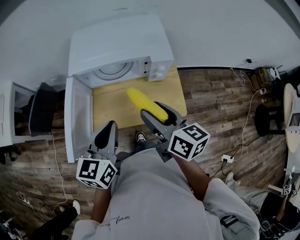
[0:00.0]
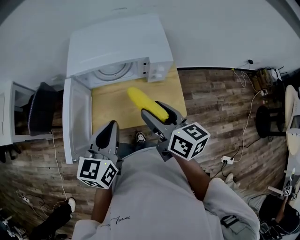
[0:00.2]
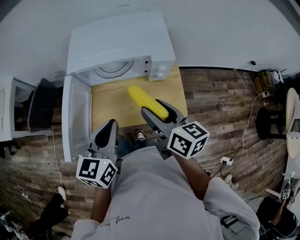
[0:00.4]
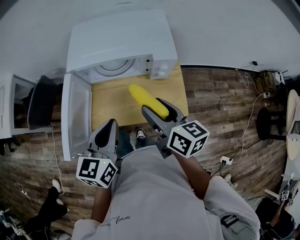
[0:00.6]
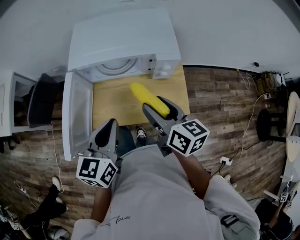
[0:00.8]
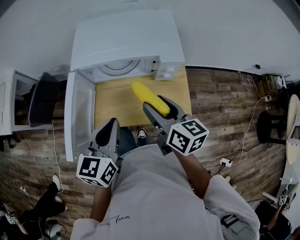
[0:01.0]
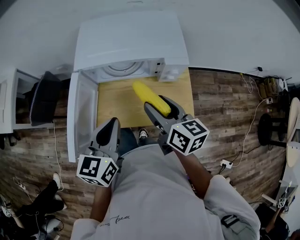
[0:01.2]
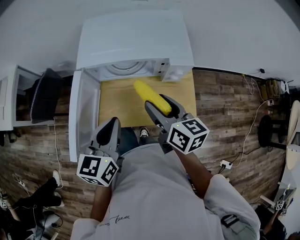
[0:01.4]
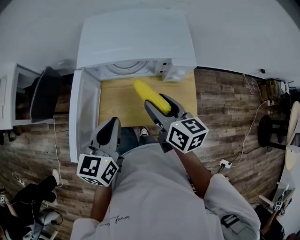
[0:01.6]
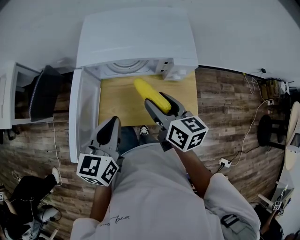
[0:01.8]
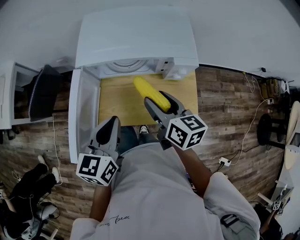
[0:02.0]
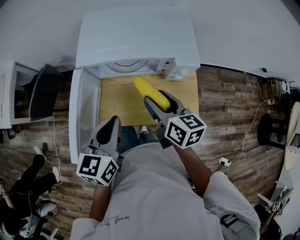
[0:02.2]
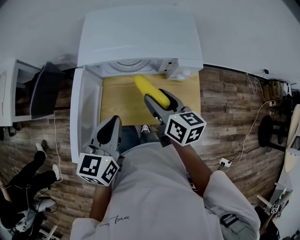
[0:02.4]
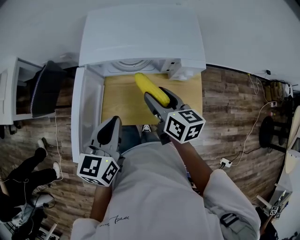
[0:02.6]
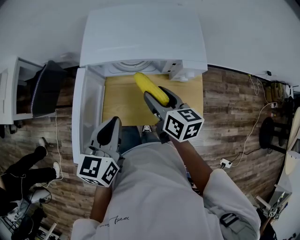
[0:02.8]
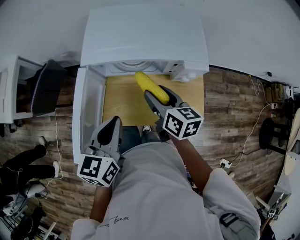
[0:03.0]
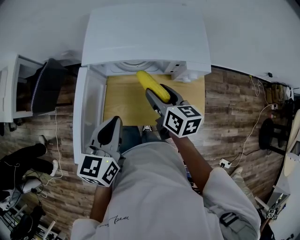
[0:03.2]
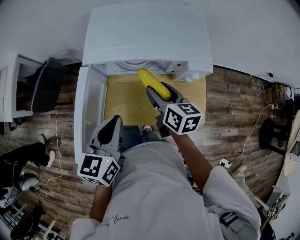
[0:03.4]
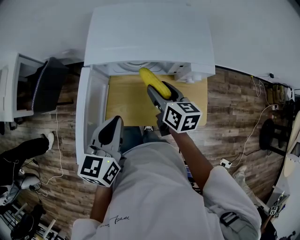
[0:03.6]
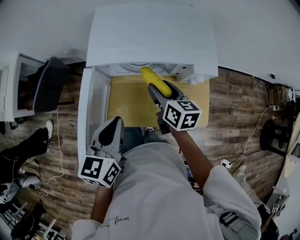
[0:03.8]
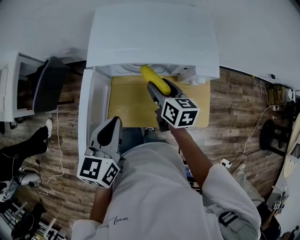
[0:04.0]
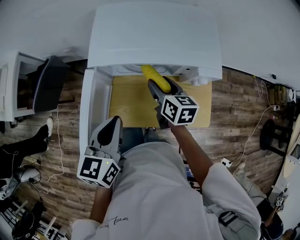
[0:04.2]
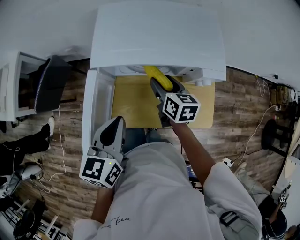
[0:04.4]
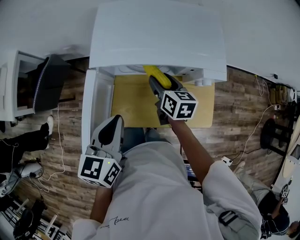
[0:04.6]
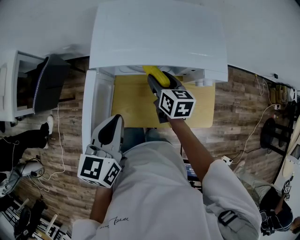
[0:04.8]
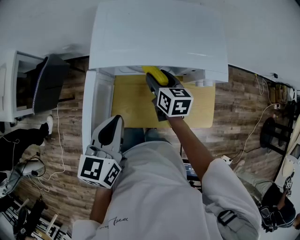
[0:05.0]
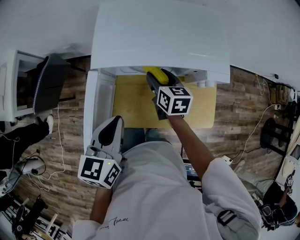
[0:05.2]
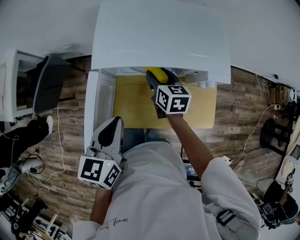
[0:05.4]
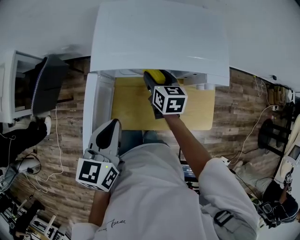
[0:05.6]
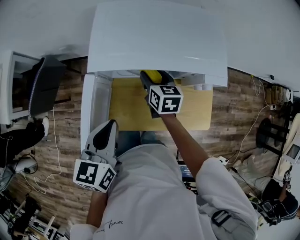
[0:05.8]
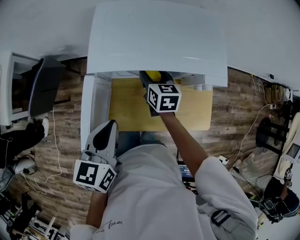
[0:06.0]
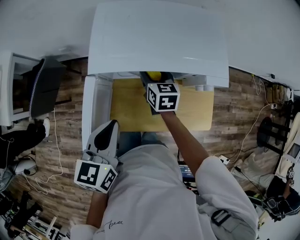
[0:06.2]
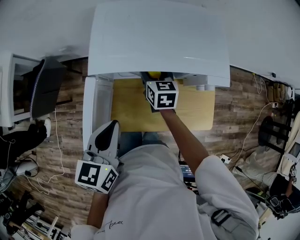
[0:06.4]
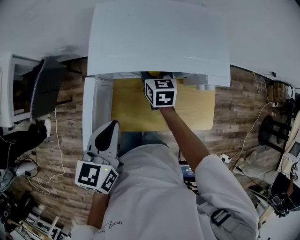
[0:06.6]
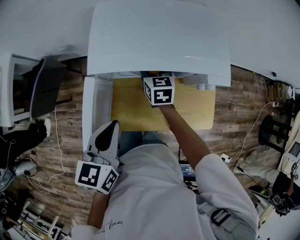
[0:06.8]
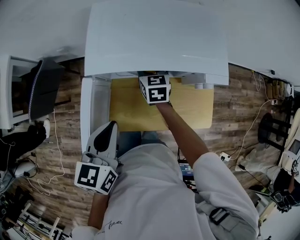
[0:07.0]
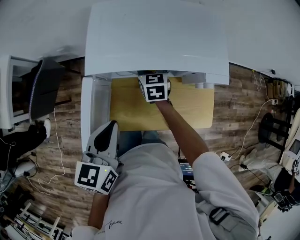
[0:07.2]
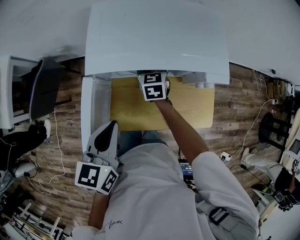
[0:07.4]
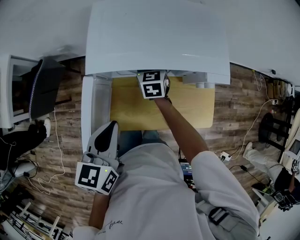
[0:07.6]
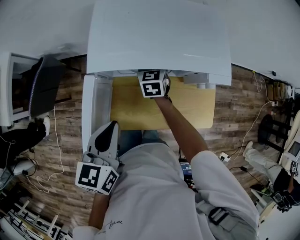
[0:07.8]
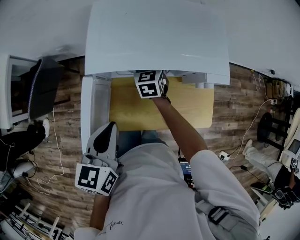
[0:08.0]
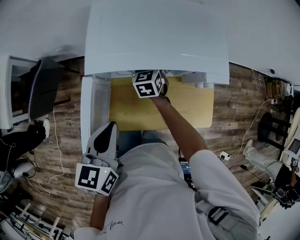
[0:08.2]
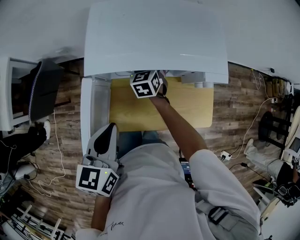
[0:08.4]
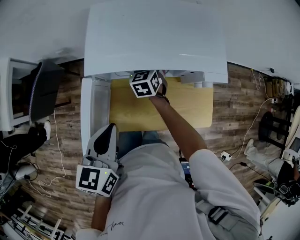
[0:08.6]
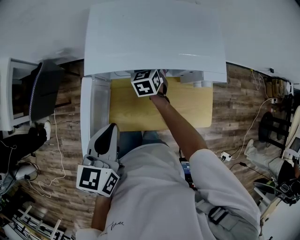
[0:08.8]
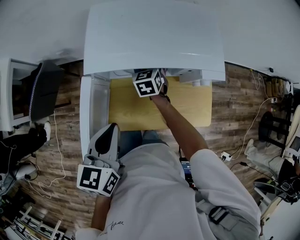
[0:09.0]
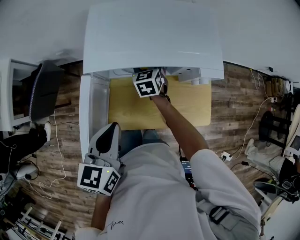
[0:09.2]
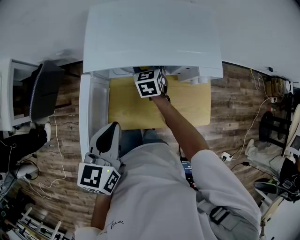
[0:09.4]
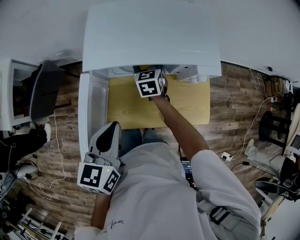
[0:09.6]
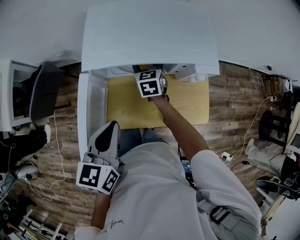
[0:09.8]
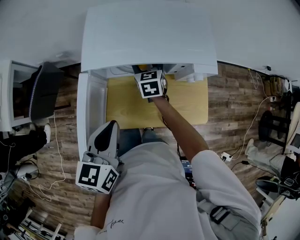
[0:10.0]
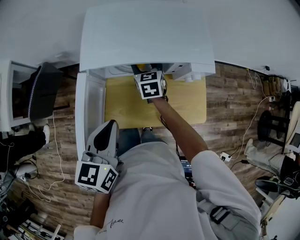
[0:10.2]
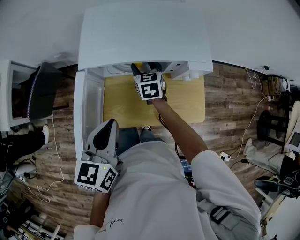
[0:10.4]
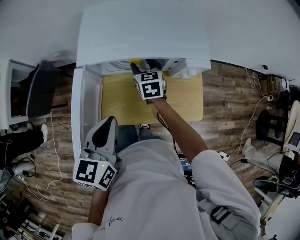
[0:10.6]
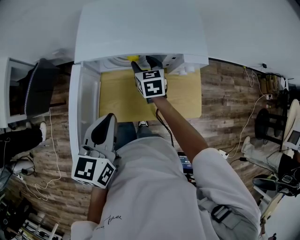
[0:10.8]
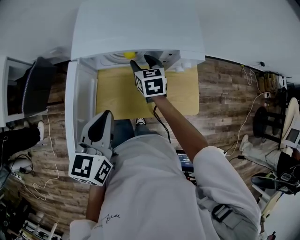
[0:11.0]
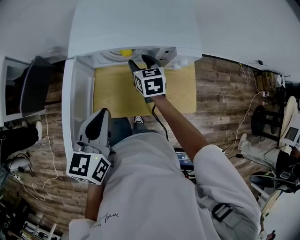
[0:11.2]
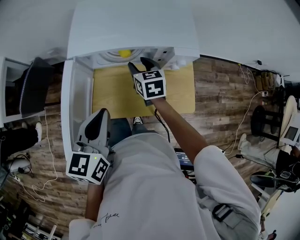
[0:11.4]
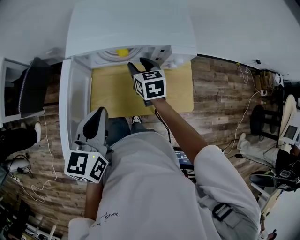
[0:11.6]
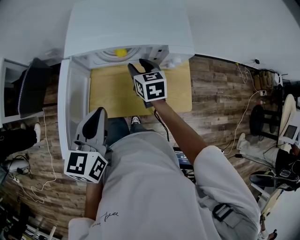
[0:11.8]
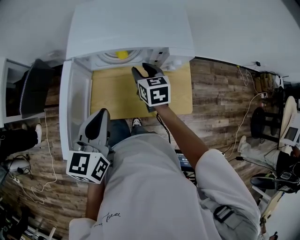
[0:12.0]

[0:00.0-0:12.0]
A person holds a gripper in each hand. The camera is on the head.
0:00.0 to 0:01.6: The left gripper shifts by roughly 5 cm; the right gripper travels forward and downward by roughly 10 cm.
0:01.6 to 0:03.0: The right gripper travels forward by about 5 cm.
0:03.0 to 0:04.4: The right gripper is displaced forward and downward by some 10 cm.
0:04.4 to 0:06.0: The right gripper moves forward, about 5 cm.
0:06.0 to 0:07.6: The right gripper is displaced forward by roughly 5 cm.
0:07.6 to 0:09.0: The grippers make only small movements.
0:09.0 to 0:10.4: The right gripper ends up roughly 5 cm from where it was.
0:10.4 to 0:12.0: The right gripper moves backward and to the right, some 10 cm.

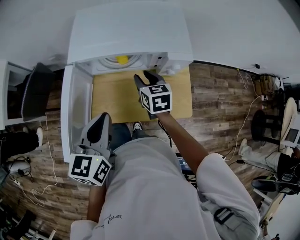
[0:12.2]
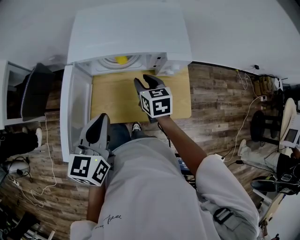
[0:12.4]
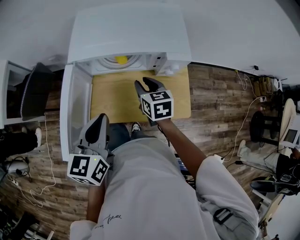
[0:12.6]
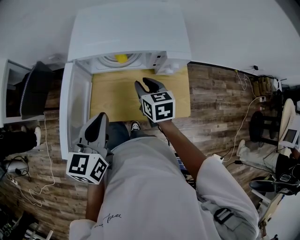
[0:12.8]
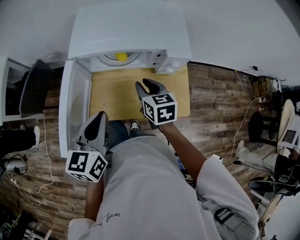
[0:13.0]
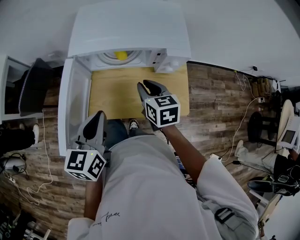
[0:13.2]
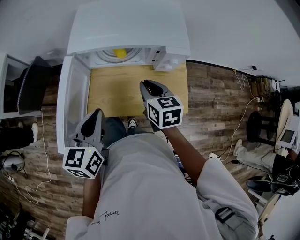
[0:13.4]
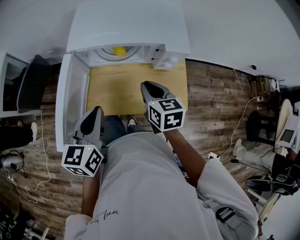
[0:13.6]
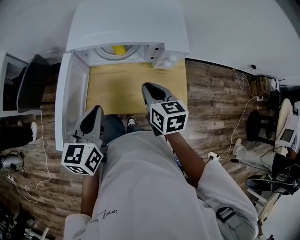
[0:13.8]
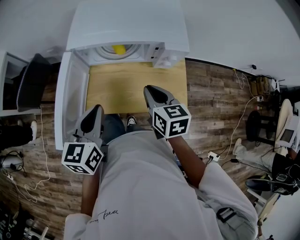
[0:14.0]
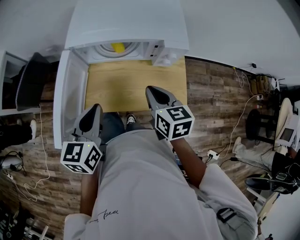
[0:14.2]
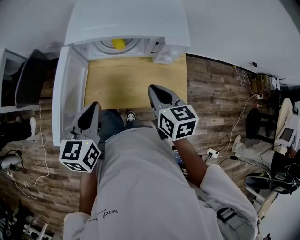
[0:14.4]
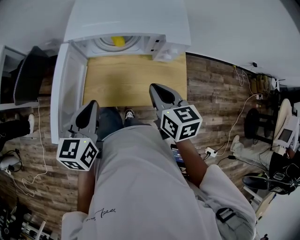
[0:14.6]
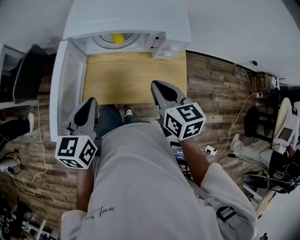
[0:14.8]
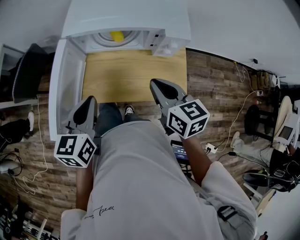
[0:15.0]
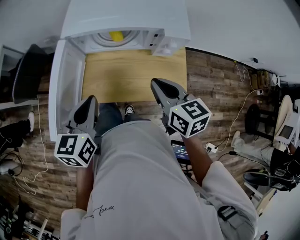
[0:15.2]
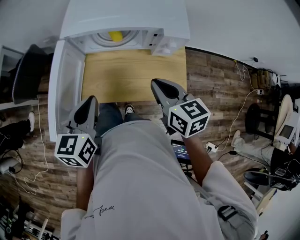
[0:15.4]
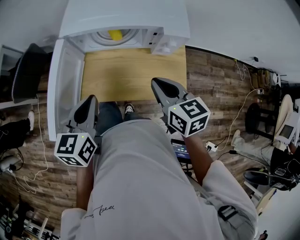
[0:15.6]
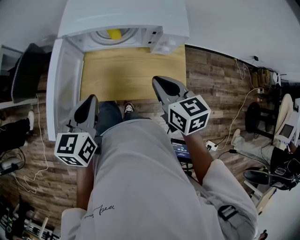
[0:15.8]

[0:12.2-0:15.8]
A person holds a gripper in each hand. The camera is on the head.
0:12.2 to 0:14.0: The right gripper travels backward and upward by roughly 10 cm, and closes up.
0:14.0 to 0:15.8: There are only small adjustments of the grippers.

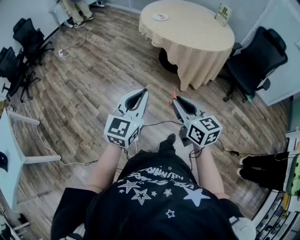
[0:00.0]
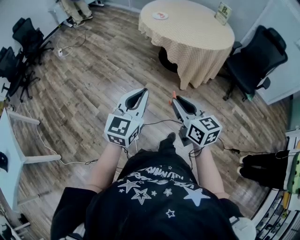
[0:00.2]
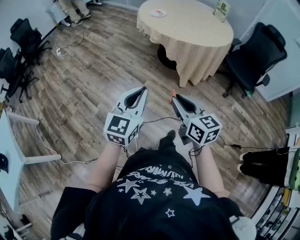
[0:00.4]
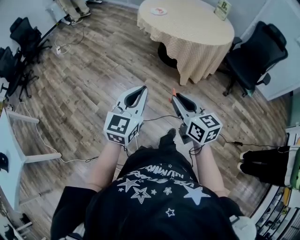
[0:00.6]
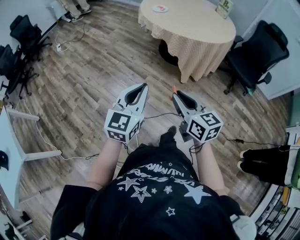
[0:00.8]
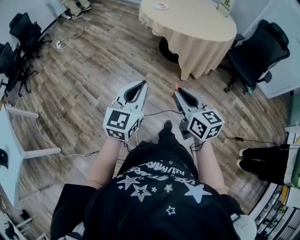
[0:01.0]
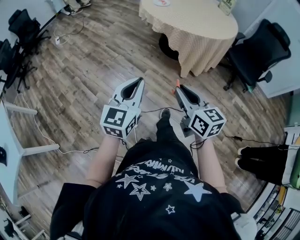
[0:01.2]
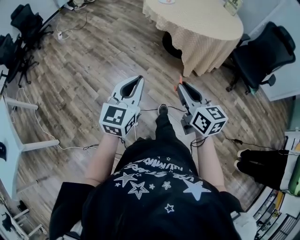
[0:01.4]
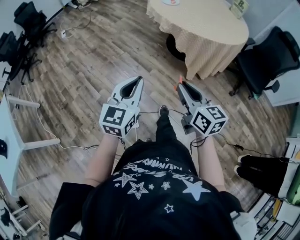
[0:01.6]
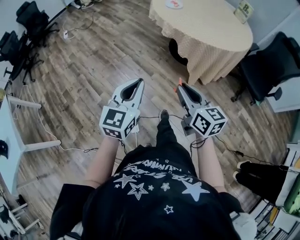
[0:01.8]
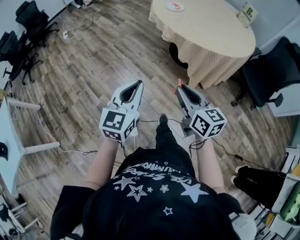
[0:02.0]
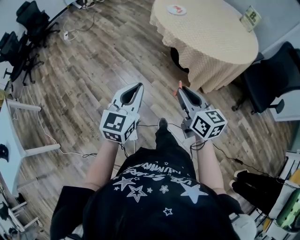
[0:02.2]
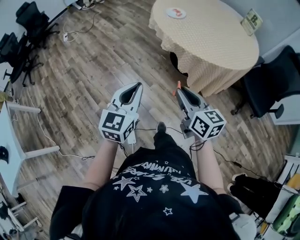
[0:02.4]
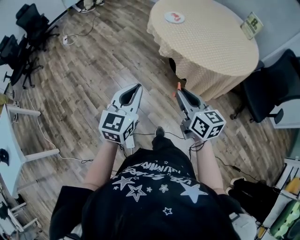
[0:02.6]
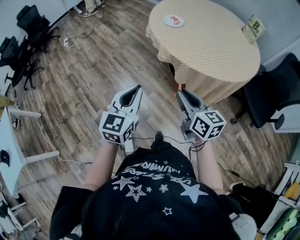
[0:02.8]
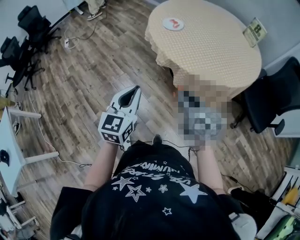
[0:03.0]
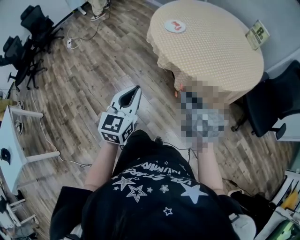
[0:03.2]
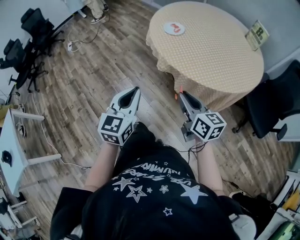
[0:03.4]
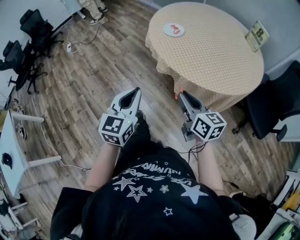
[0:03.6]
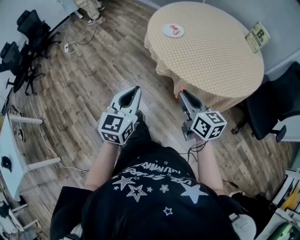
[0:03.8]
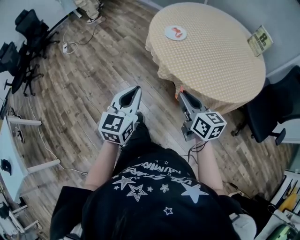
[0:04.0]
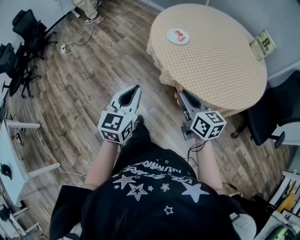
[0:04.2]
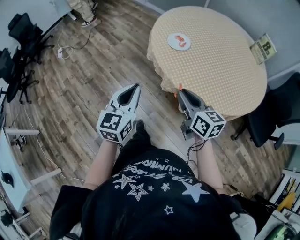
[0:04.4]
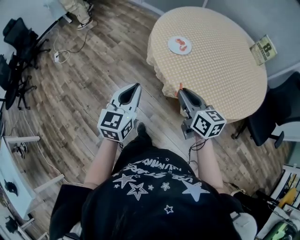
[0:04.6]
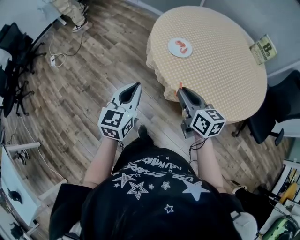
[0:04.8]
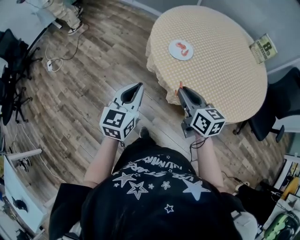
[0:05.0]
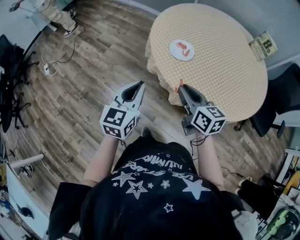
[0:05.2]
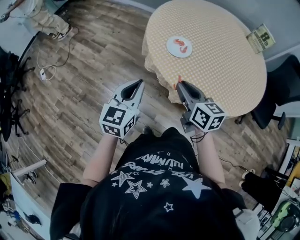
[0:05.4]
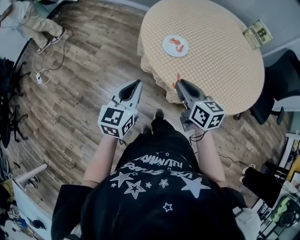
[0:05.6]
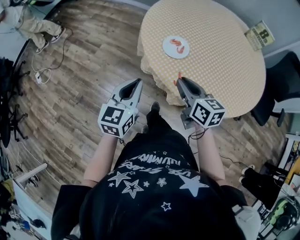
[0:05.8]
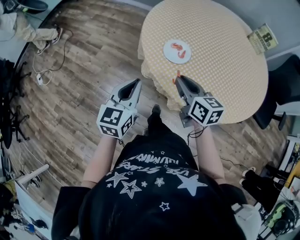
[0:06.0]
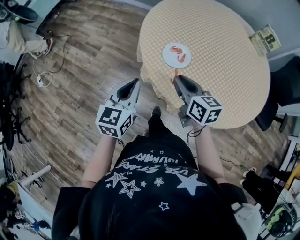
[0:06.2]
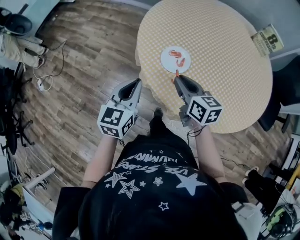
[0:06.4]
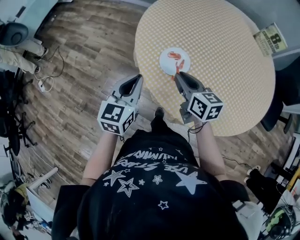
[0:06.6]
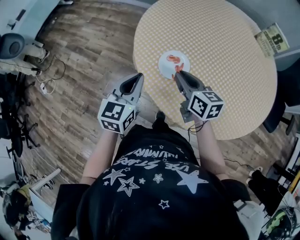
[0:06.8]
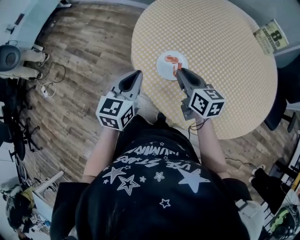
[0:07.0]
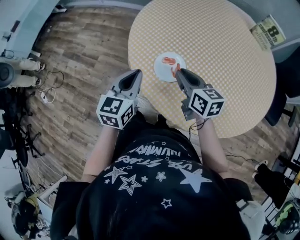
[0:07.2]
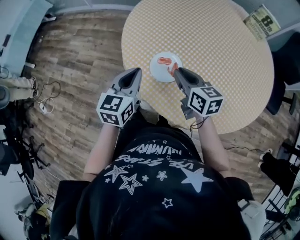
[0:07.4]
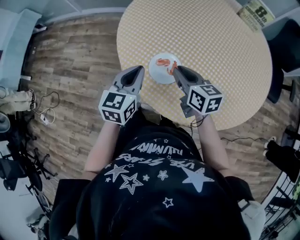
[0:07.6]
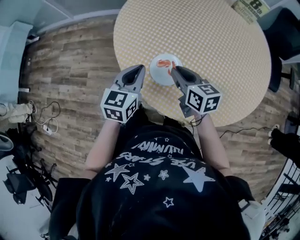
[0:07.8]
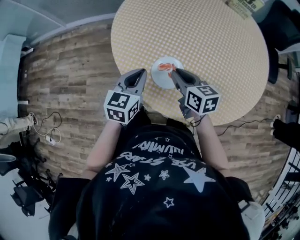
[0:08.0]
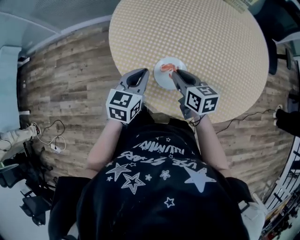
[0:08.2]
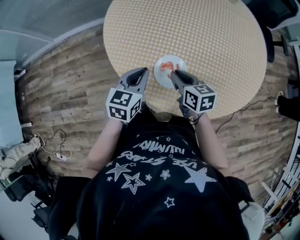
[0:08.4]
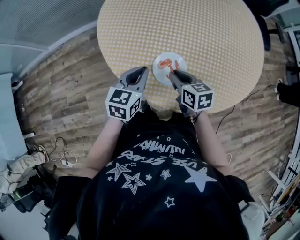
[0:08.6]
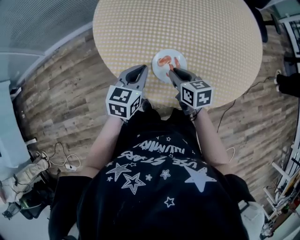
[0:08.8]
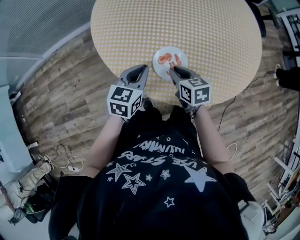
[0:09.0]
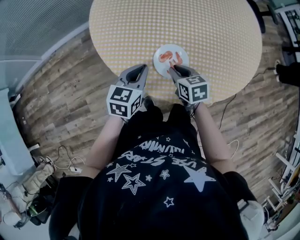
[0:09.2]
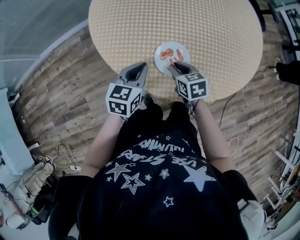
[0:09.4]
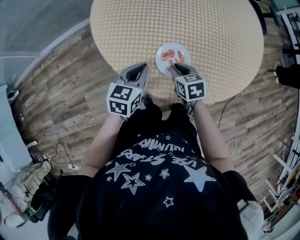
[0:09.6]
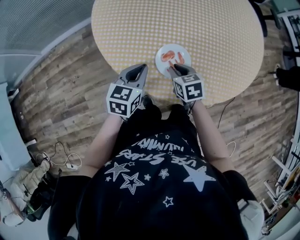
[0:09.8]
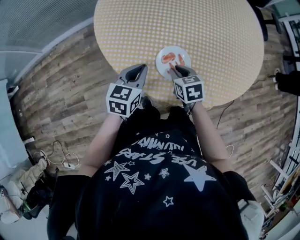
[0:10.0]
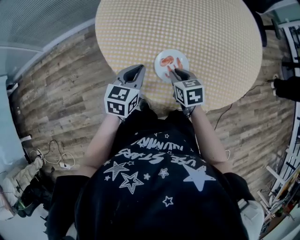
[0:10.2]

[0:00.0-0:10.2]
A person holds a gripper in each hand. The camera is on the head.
0:00.0 to 0:01.4: The grippers stay close to where they were, moving slightly.
0:01.4 to 0:03.0: Both grippers travel together forward, roughly 30 cm.
0:03.0 to 0:04.4: Both grippers move forward, about 20 cm.
0:04.4 to 0:05.8: Both grippers travel together forward, about 20 cm.
0:05.8 to 0:07.2: Both grippers move forward, approximately 20 cm.
0:07.2 to 0:08.8: The right gripper goes about 10 cm downward, and rotates approximately 40 degrees, while the left gripper moves about 15 cm, and turns by some 40 degrees.
0:08.8 to 0:10.2: The grippers move only a little.
